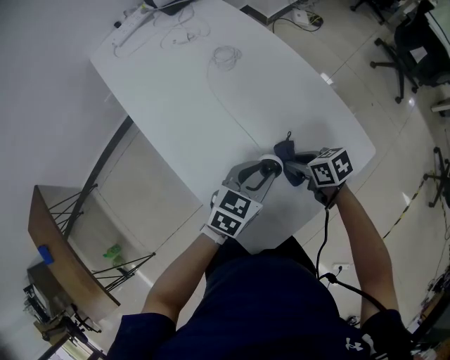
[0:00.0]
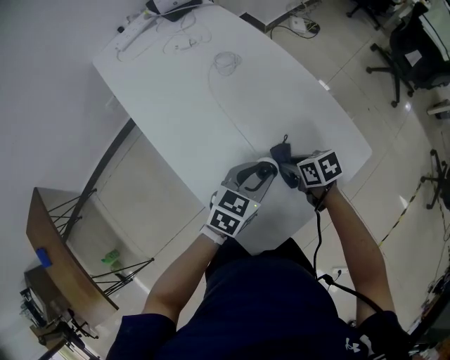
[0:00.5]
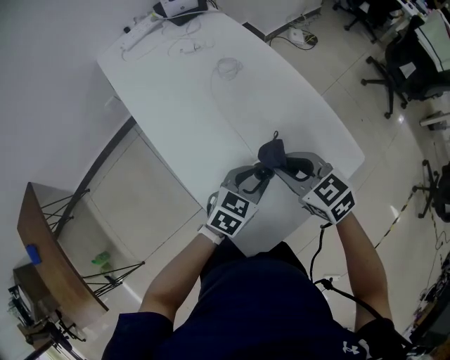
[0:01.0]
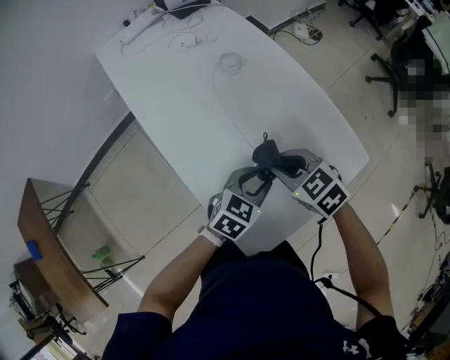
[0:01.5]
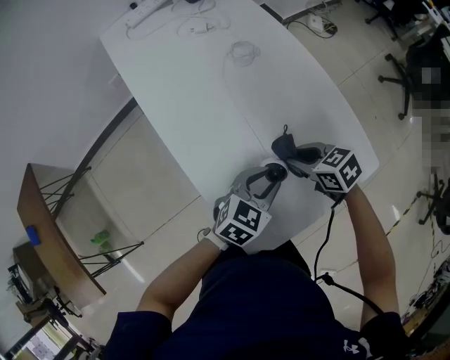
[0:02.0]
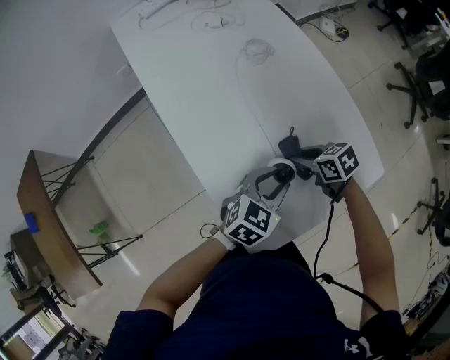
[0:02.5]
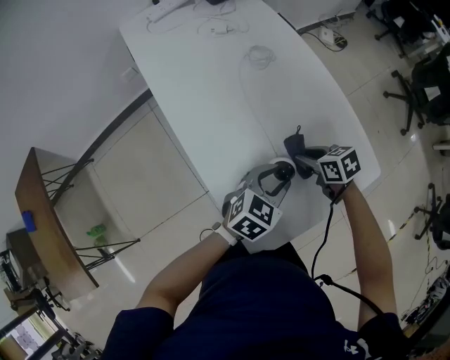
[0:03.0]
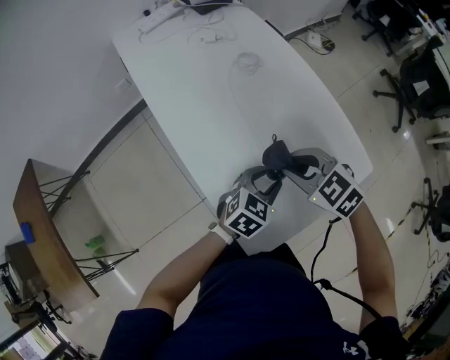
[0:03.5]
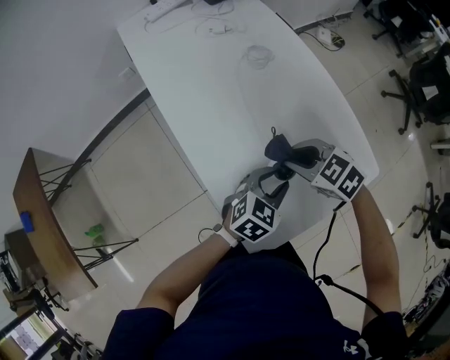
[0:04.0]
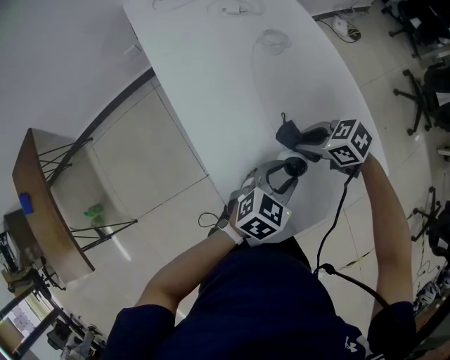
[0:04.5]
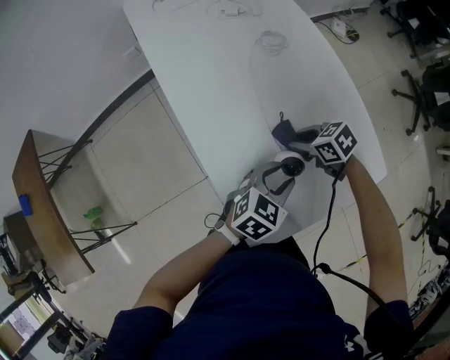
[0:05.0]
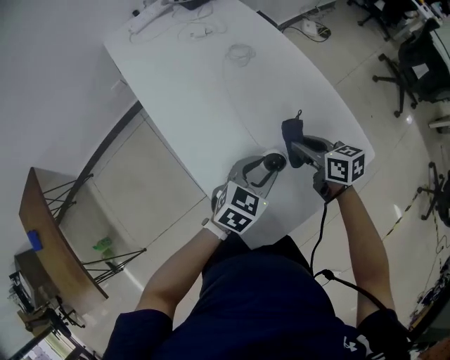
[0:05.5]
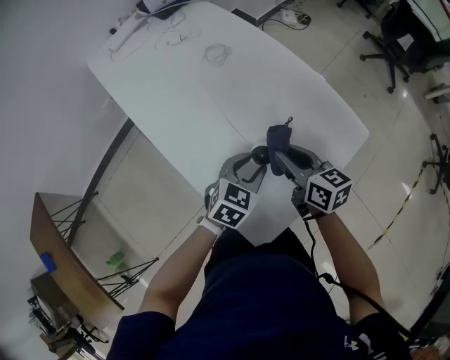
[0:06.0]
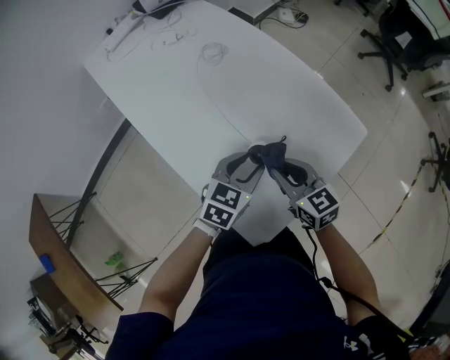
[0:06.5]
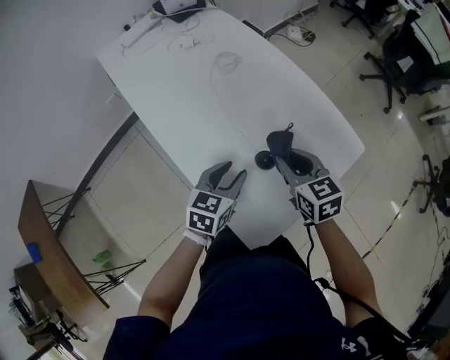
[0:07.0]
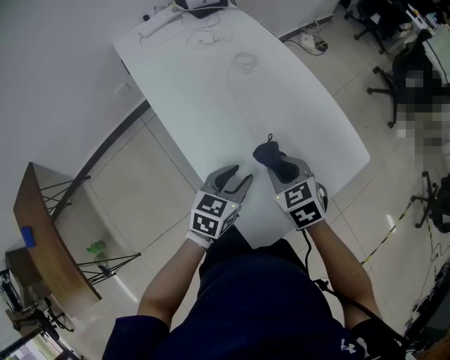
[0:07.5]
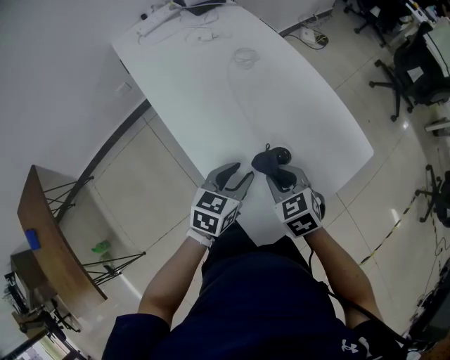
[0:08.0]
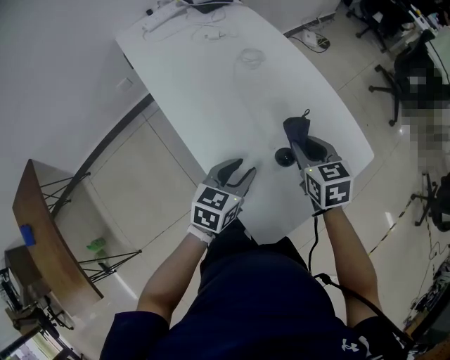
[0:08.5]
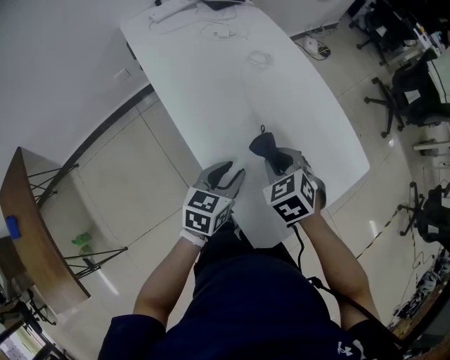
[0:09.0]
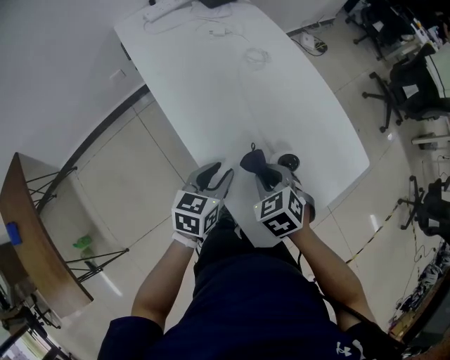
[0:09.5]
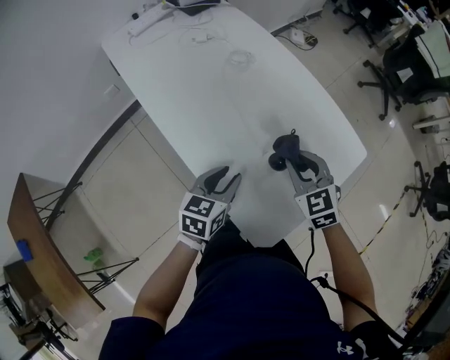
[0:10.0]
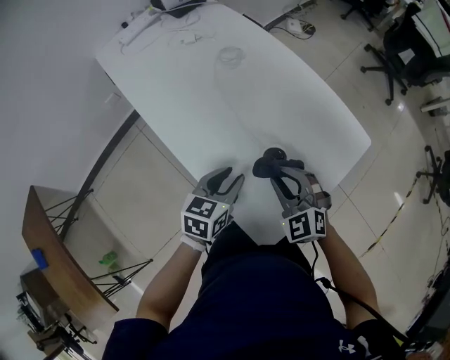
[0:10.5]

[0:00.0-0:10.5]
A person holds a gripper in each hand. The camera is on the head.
0:00.0 to 0:02.0: The right gripper moves about 15 cm upward and comes back, and rotates roughly 20 degrees.
0:02.0 to 0:04.0: The right gripper swings up and down, approximately 15 cm each way, with 2 reversals, and changes its angle by roughly 20 degrees.
0:04.0 to 0:06.5: The right gripper goes downward and returns, some 10 cm each way, and rotates approximately 50 degrees.
0:06.5 to 0:08.5: The right gripper swings forward and backward, roughly 10 cm each way, with 2 reversals, and turns by approximately 20 degrees. Meanwhile the left gripper heads to the left, covering some 10 cm.
0:08.5 to 0:10.5: The left gripper travels to the left and back again, about 10 cm each way. Meanwhile the right gripper shifts roughly 10 cm backward, travels to the left and back again, roughly 10 cm each way, and turns by approximately 40 degrees.

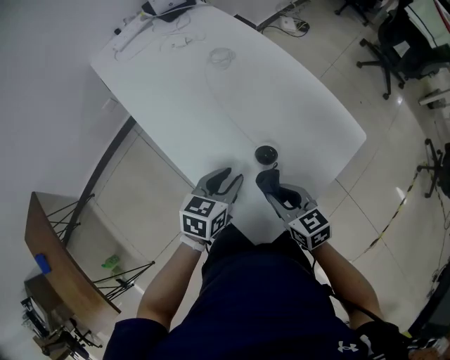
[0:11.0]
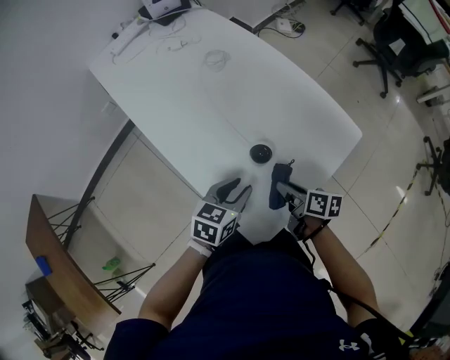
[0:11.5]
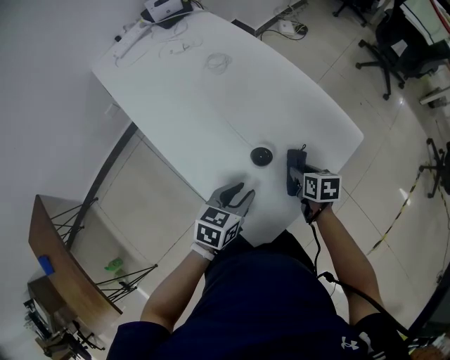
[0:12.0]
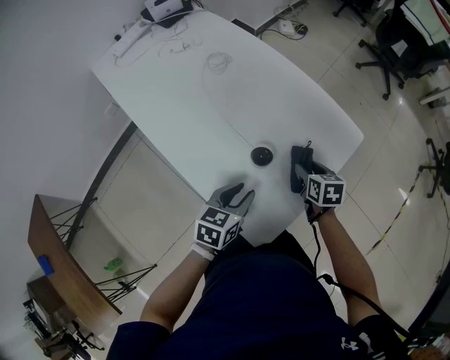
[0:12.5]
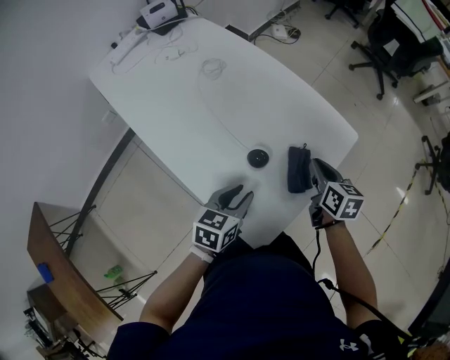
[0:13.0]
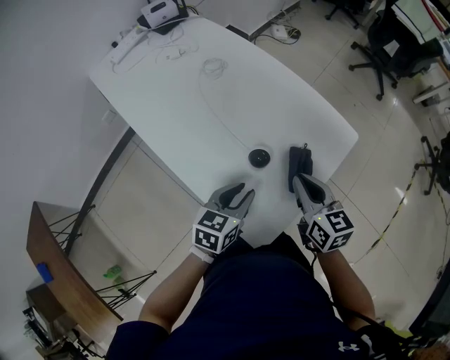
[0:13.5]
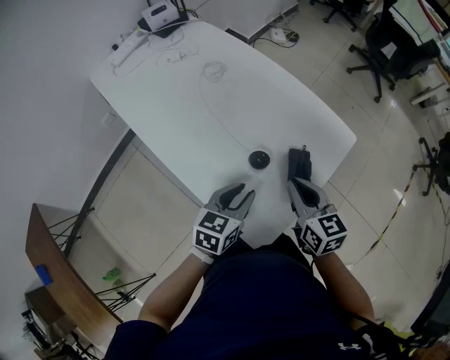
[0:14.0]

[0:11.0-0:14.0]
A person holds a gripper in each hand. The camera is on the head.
0:11.0 to 0:12.5: The left gripper ends up about 5 cm from where it was. Meanwhile the right gripper goes about 15 cm to the right, forward and downward, turns by approximately 30 degrees, and opens.
0:12.5 to 0:14.0: The right gripper goes roughly 15 cm upward, turns by some 30 degrees, and closes its fingers.

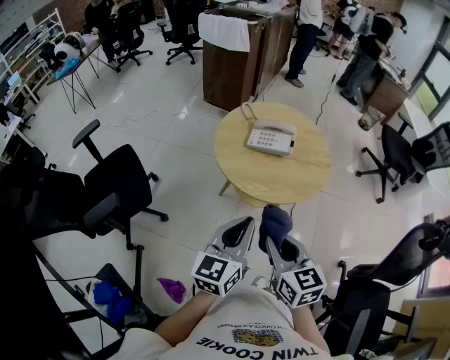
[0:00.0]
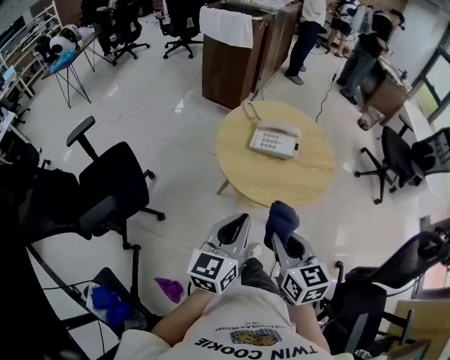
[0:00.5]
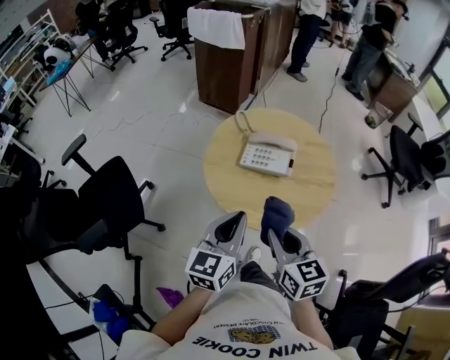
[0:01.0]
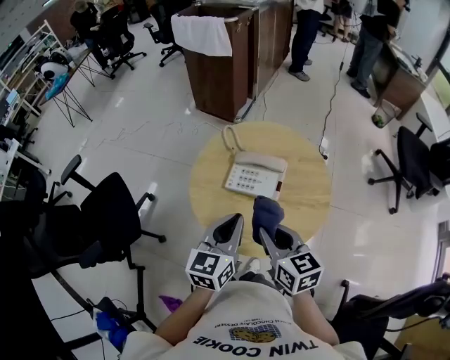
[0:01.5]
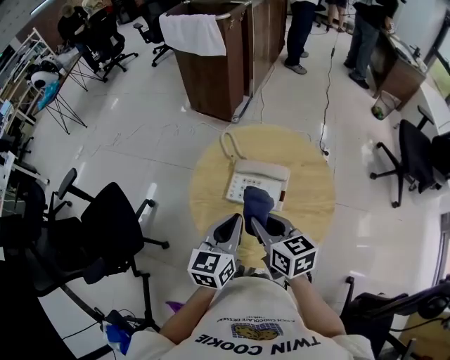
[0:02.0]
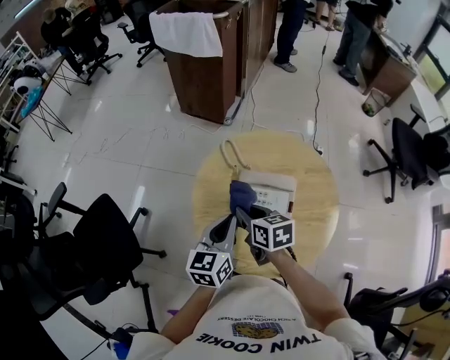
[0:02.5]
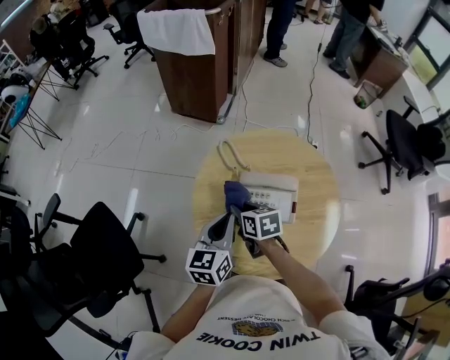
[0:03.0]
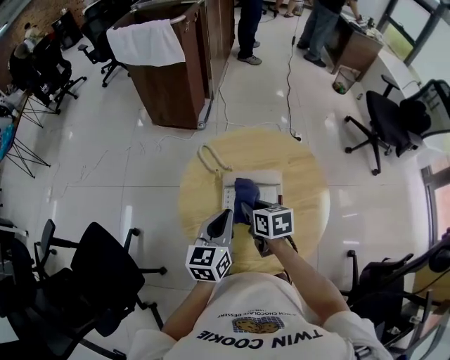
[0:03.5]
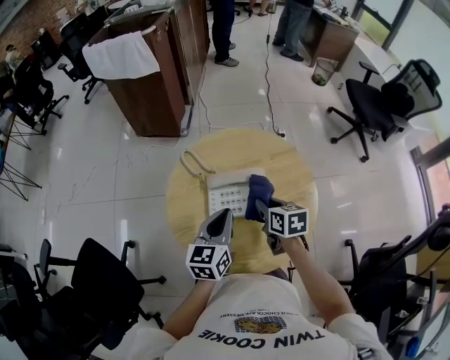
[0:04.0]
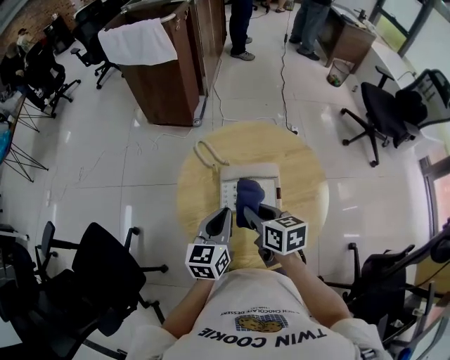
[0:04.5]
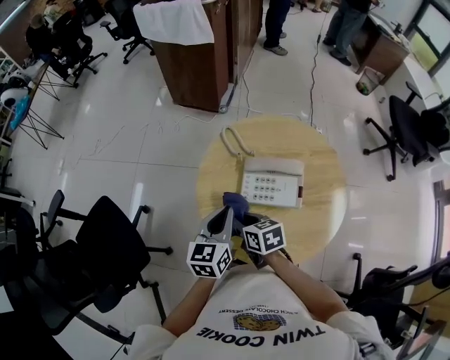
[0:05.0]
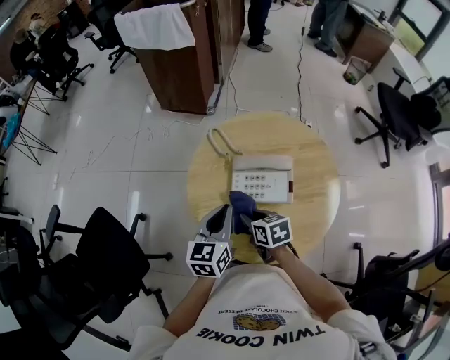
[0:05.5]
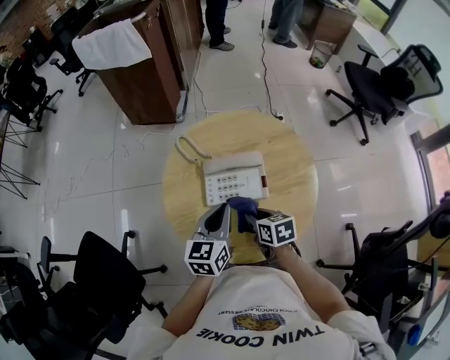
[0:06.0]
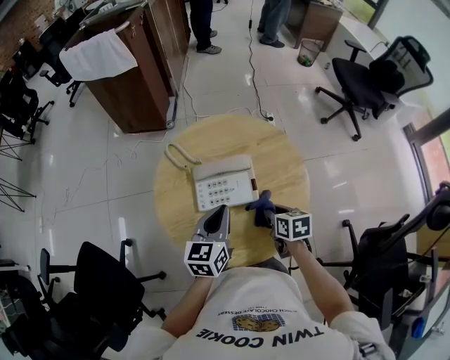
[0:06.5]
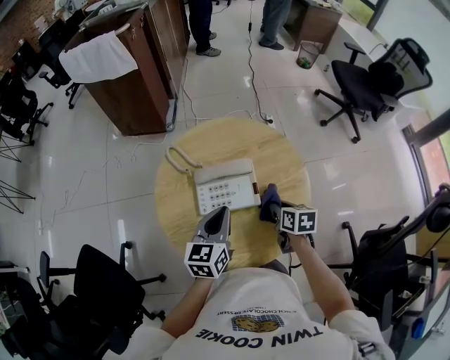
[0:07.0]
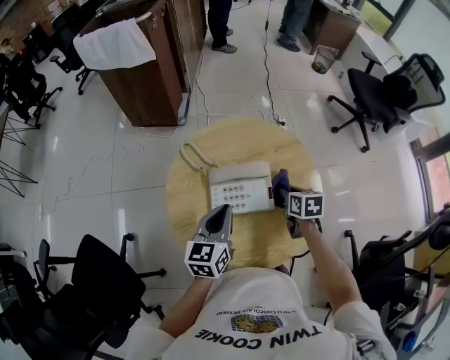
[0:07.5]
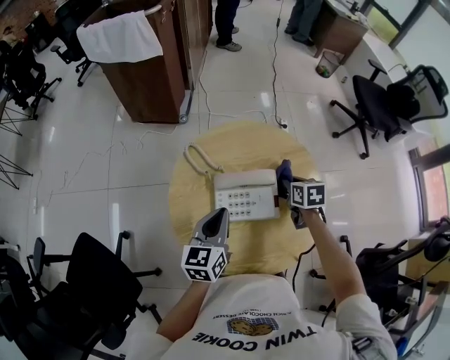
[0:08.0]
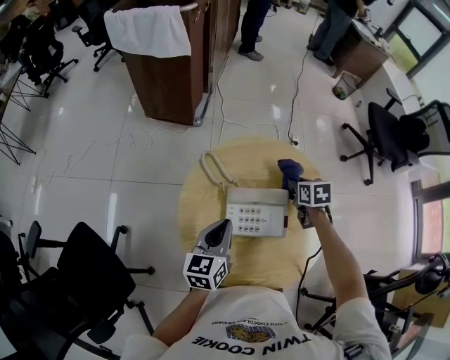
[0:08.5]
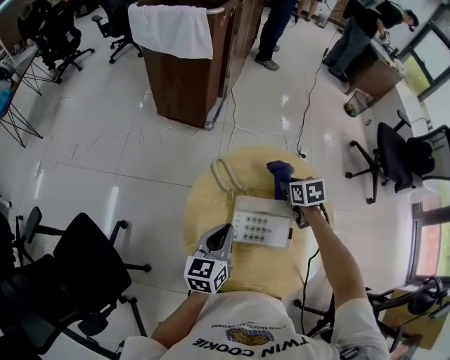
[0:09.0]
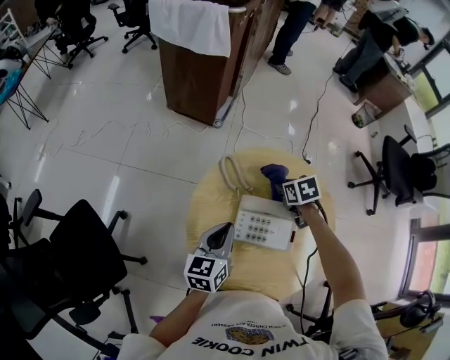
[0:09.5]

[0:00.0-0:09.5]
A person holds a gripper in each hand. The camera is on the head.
0:00.0 to 0:02.0: Both grippers travel together forward, roughly 30 cm.
0:02.0 to 0:04.0: The right gripper heads downward, to the right and forward, covering approximately 15 cm, and changes its angle by some 30 degrees, while the left gripper shifts approximately 5 cm forward, and travels to the left and back again, about 5 cm each way.
0:04.0 to 0:05.5: The left gripper heads to the left, covering roughly 10 cm, while the right gripper goes about 15 cm to the left and downward.
0:05.5 to 0:07.5: The left gripper heads to the right, covering roughly 5 cm. The right gripper heads to the right and forward, covering some 25 cm, and turns by approximately 30 degrees.
0:07.5 to 0:09.5: The left gripper travels to the left by roughly 10 cm, while the right gripper moves forward and to the left, some 20 cm, and turns by roughly 40 degrees.

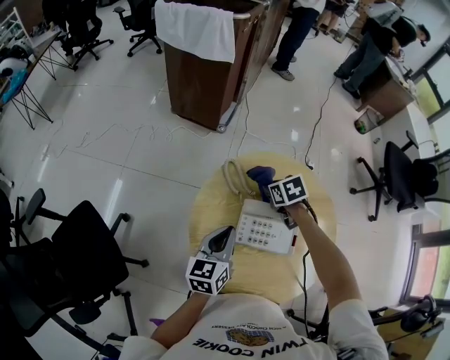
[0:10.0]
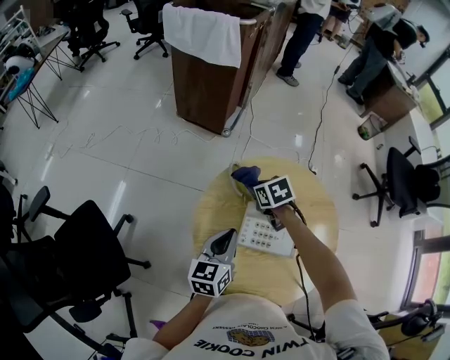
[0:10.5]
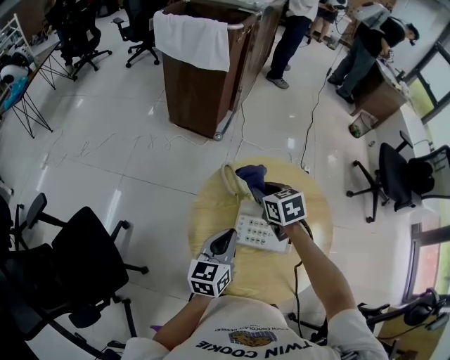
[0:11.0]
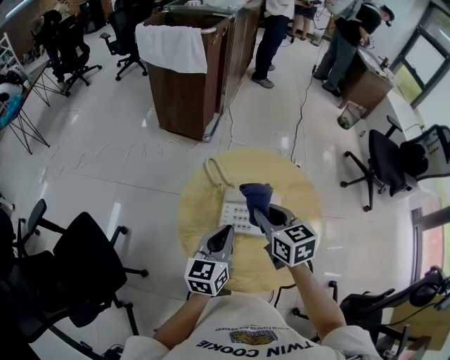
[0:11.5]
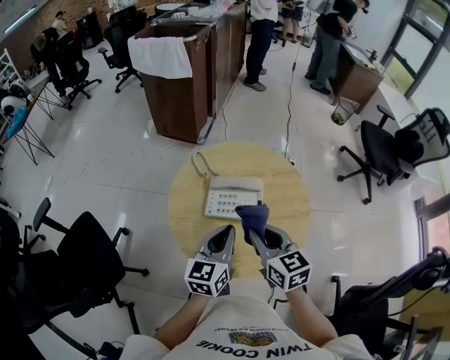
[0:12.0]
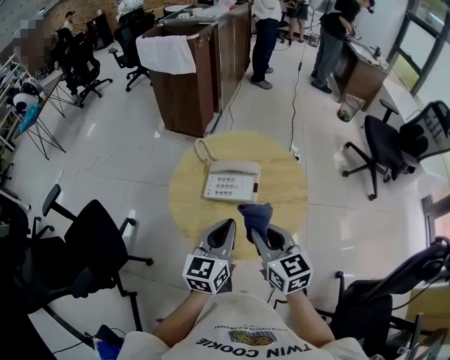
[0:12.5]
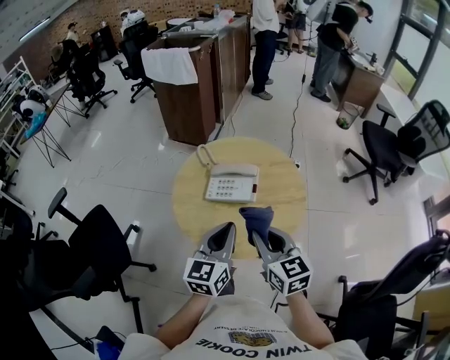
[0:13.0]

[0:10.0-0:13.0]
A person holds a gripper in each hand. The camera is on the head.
0:10.0 to 0:11.5: The right gripper goes about 20 cm backward and upward, and tips its fingers upward by approximately 30 degrees, while the left gripper travels backward by roughly 5 cm.
0:11.5 to 0:13.0: The right gripper heads backward, covering some 25 cm; the left gripper moves backward, to the right and upward, roughly 20 cm.
